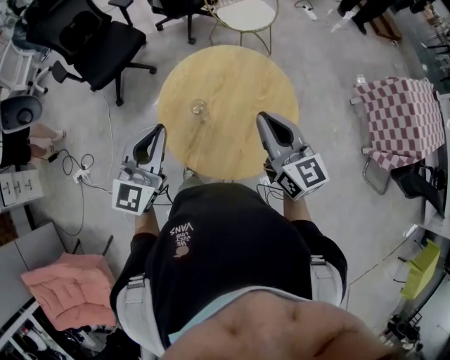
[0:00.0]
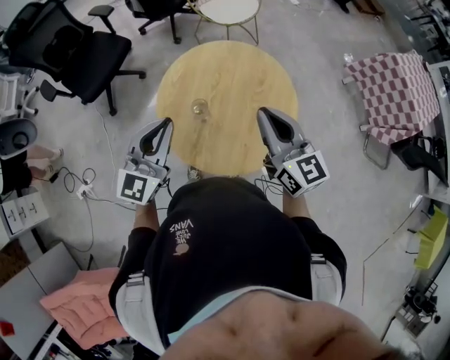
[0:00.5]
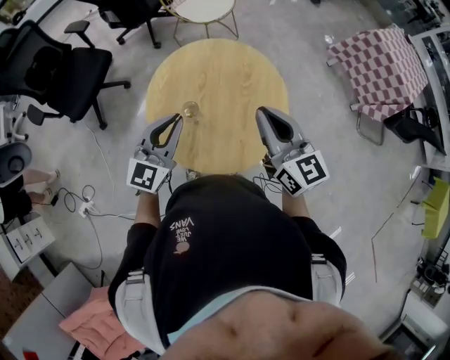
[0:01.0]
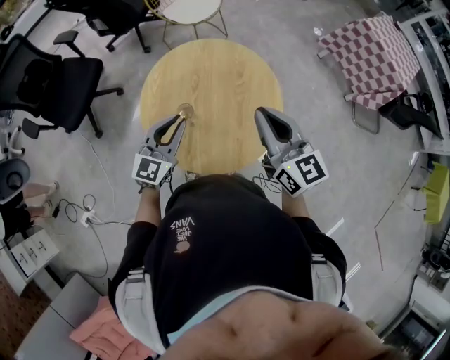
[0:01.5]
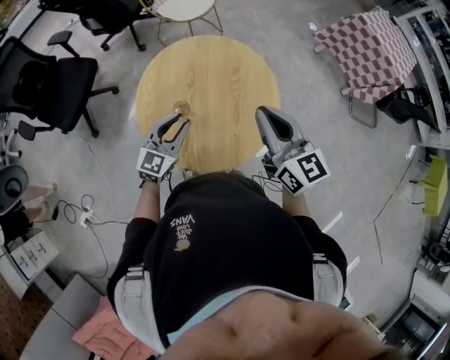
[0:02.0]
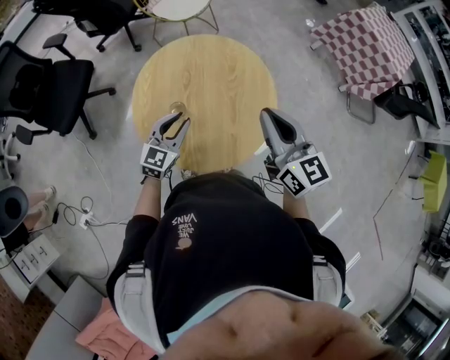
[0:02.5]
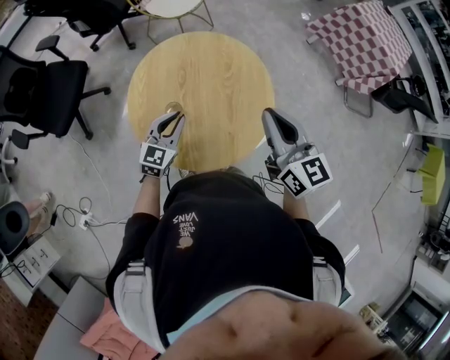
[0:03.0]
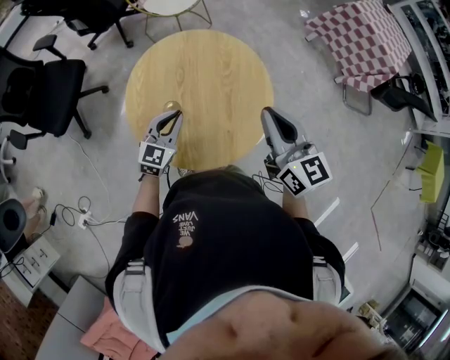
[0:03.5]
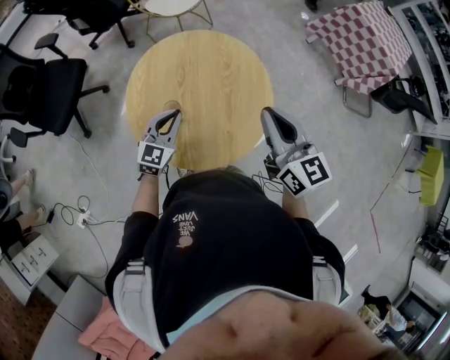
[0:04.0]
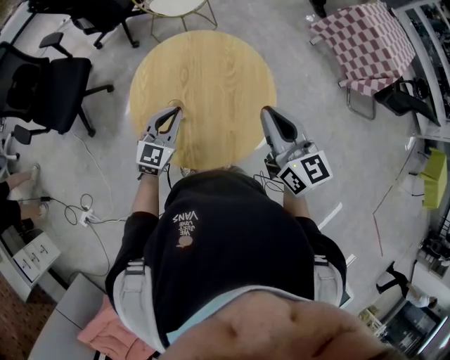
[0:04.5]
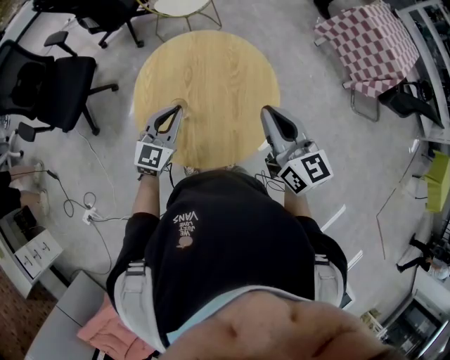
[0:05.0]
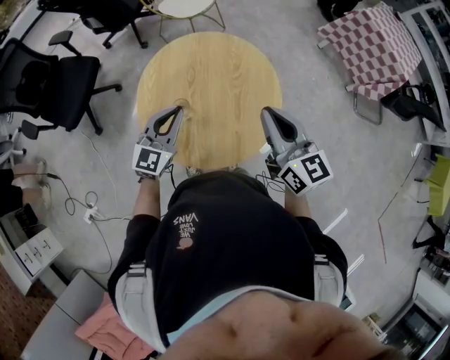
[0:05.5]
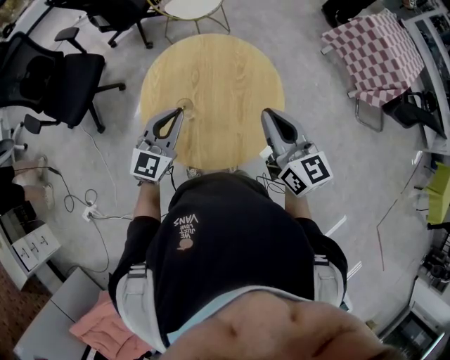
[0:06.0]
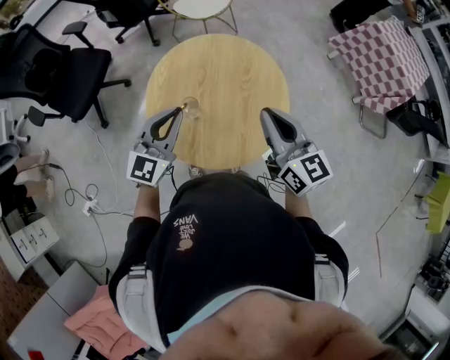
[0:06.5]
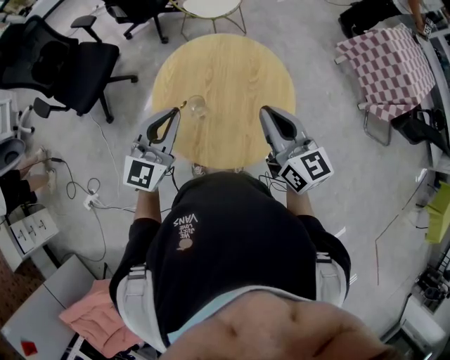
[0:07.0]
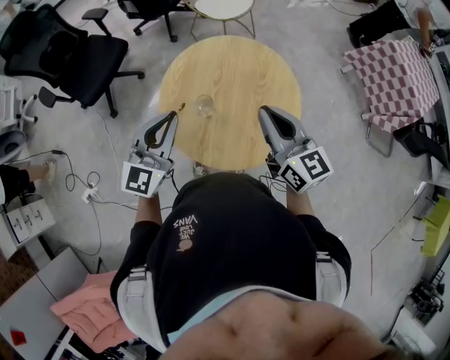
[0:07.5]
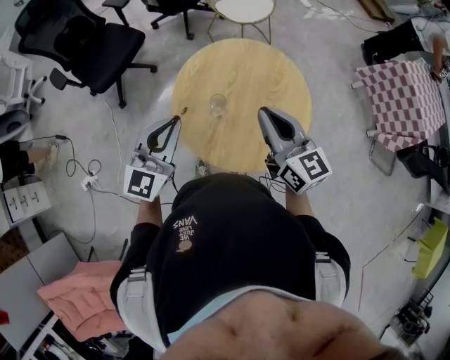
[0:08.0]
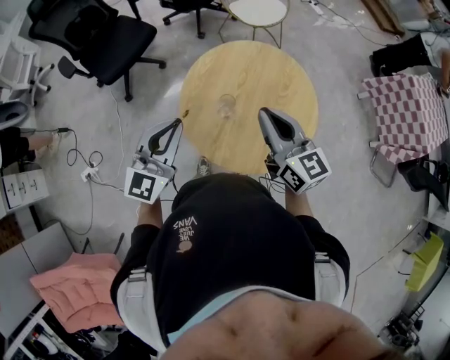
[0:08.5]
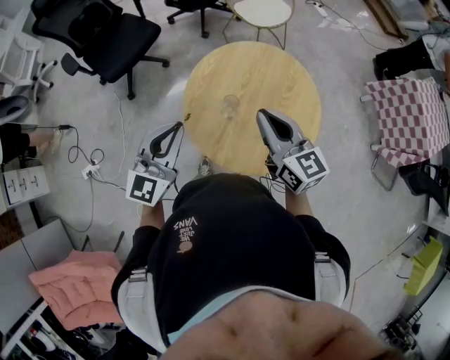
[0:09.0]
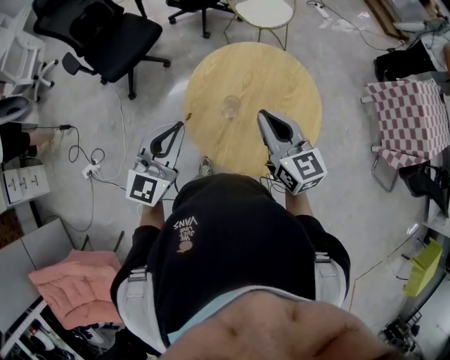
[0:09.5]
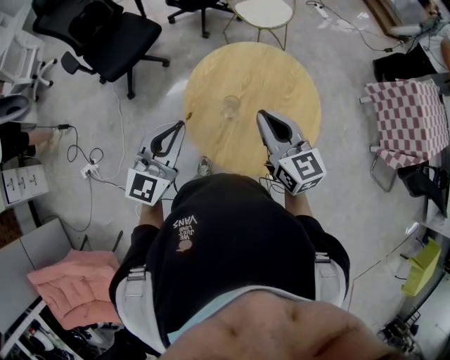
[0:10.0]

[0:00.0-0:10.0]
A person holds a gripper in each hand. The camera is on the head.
0:00.0 to 0:02.0: The left gripper goes about 15 cm downward, changes its angle by roughly 30 degrees, and opens, while the right gripper changes its angle by approximately 20 degrees.
0:02.0 to 0:04.0: The left gripper closes up.
0:04.0 to 0:06.0: The left gripper shifts roughly 10 cm upward.
0:06.0 to 0:08.0: The right gripper moves to the left, some 10 cm; the left gripper shifts some 15 cm to the left, backward and upward.
0:08.0 to 0:10.0: The right gripper changes place by about 5 cm.

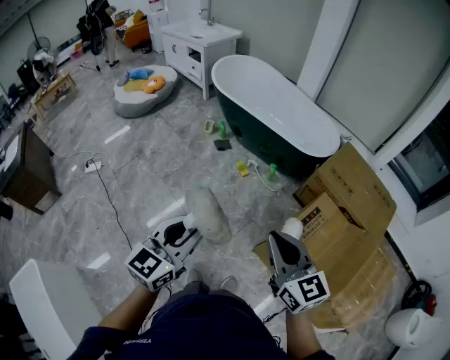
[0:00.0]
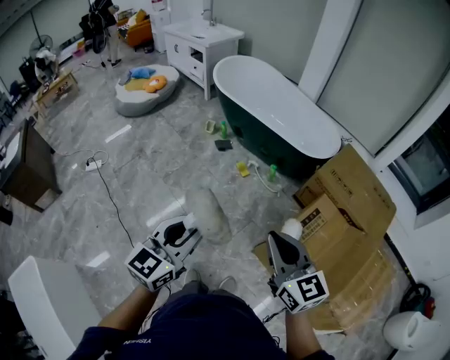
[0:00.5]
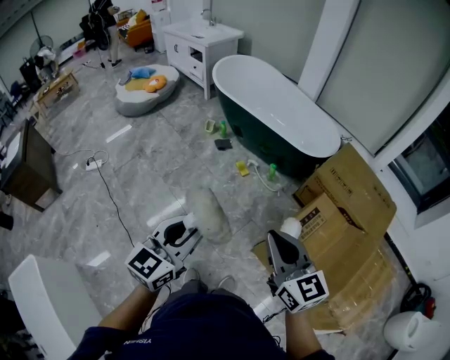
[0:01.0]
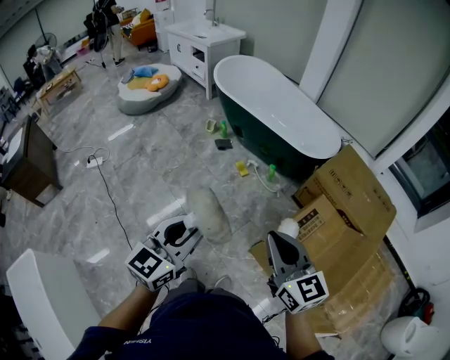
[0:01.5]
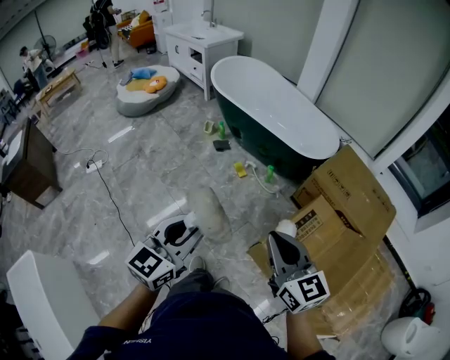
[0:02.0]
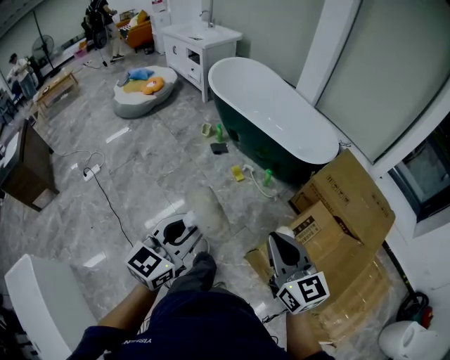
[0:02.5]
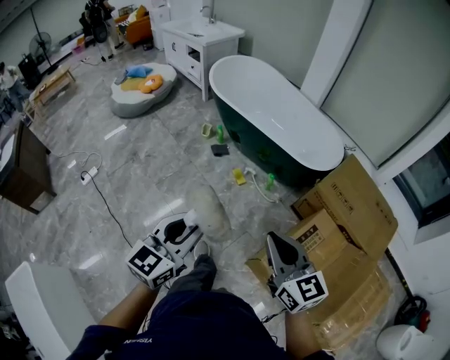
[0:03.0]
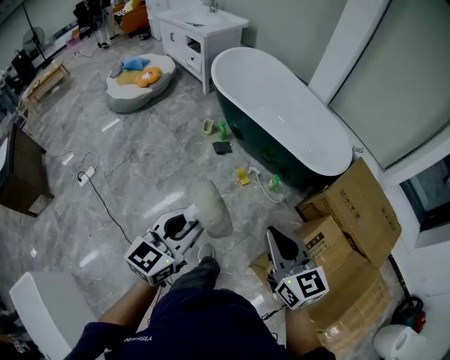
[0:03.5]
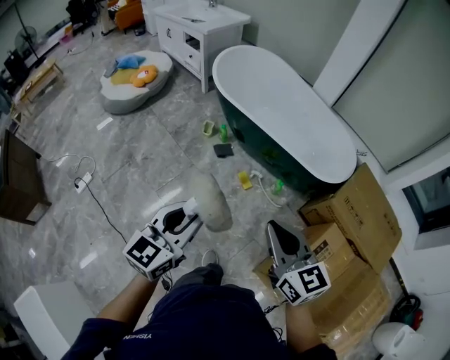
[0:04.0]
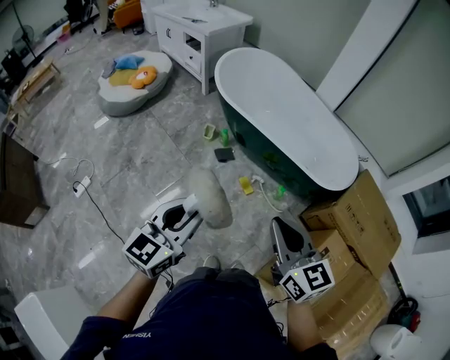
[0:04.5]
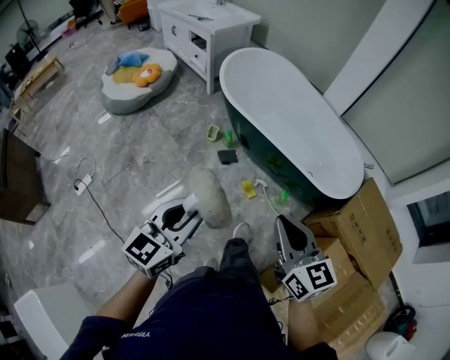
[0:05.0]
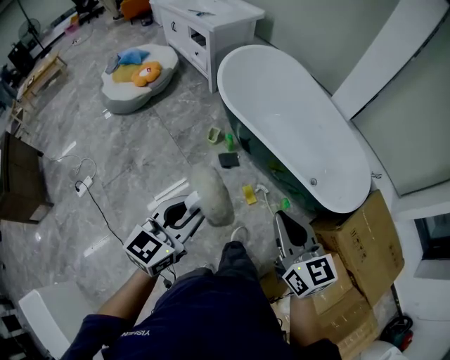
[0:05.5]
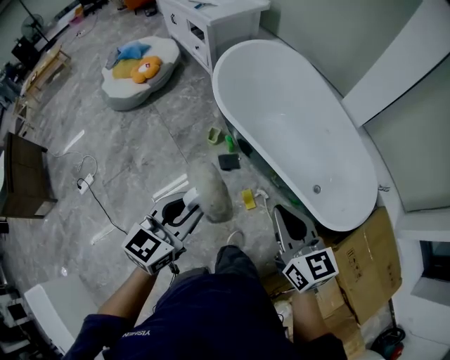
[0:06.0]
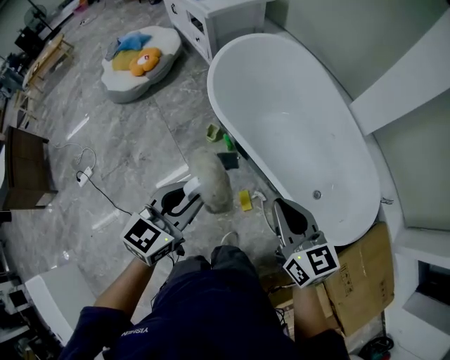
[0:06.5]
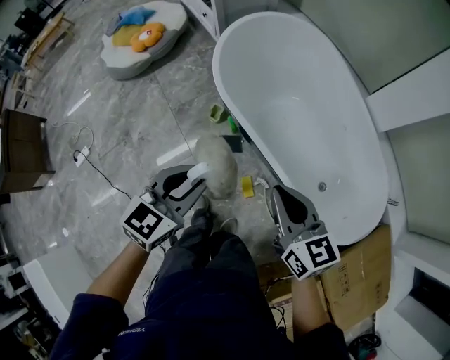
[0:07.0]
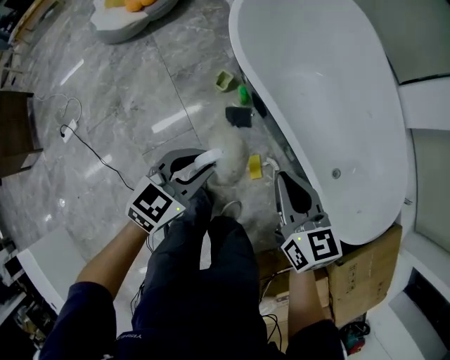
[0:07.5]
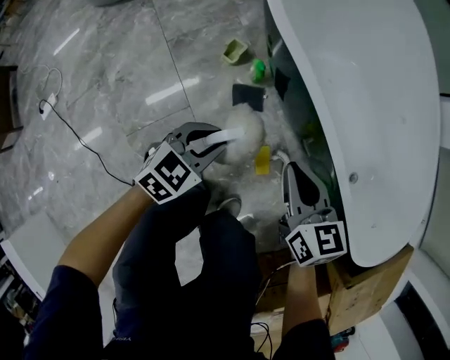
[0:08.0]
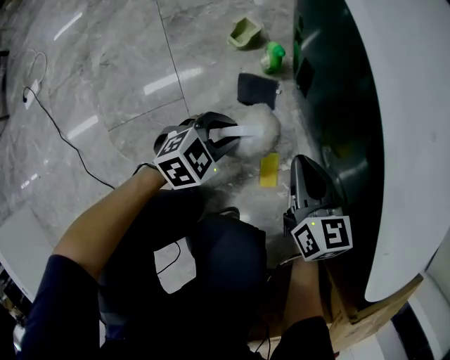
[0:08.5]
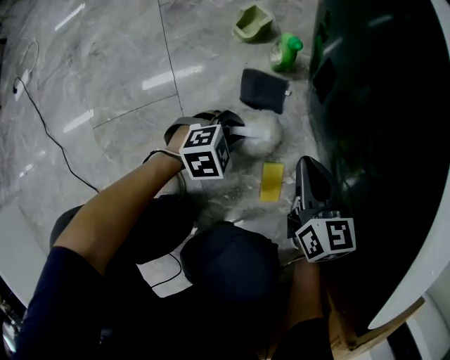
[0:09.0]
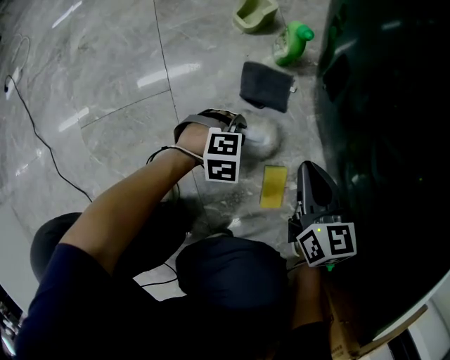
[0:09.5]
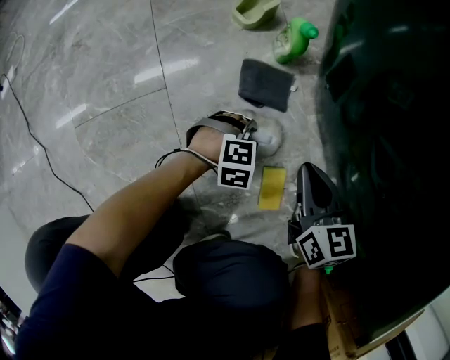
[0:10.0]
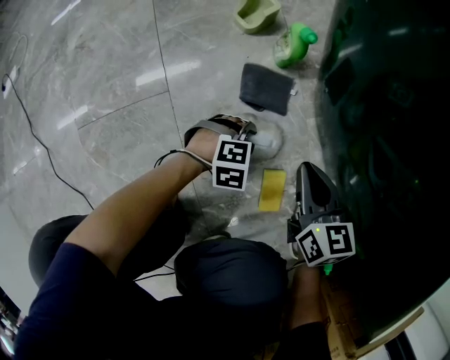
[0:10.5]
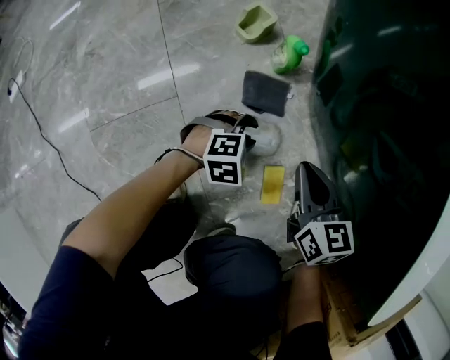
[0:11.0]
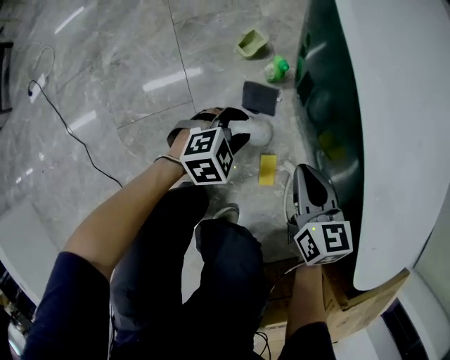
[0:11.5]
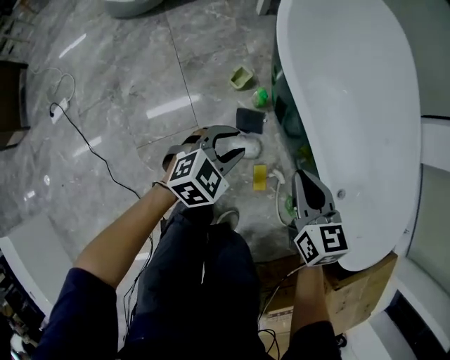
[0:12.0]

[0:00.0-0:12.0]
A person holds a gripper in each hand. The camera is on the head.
0:00.0 to 0:02.0: Both grippers move to the right, about 5 cm.
0:02.0 to 0:04.0: The left gripper goes some 30 cm forward. The right gripper moves forward and to the left, some 35 cm.
0:04.0 to 0:06.0: The grippers both shift forward by about 35 cm.
0:06.0 to 0:08.0: The right gripper travels downward and forward by some 40 cm. The left gripper is displaced downward by approximately 50 cm, and swivels some 30 degrees.
0:08.0 to 0:10.0: Both grippers travel together downward, about 40 cm. The left gripper turns by some 40 degrees.
0:10.0 to 0:12.0: The two grippers go about 50 cm upward. The left gripper rotates about 30 degrees.

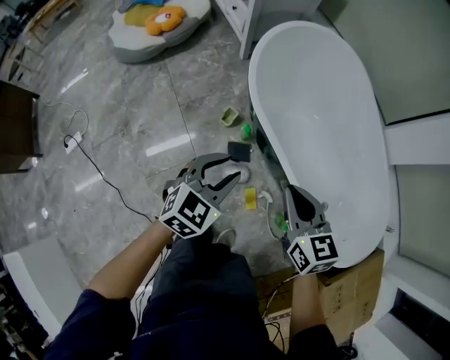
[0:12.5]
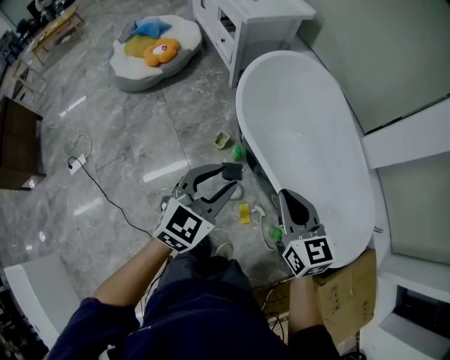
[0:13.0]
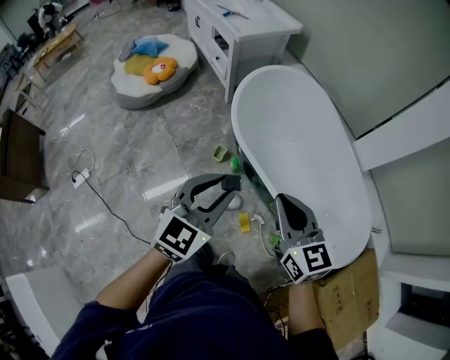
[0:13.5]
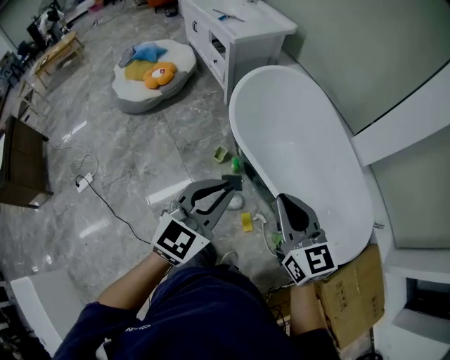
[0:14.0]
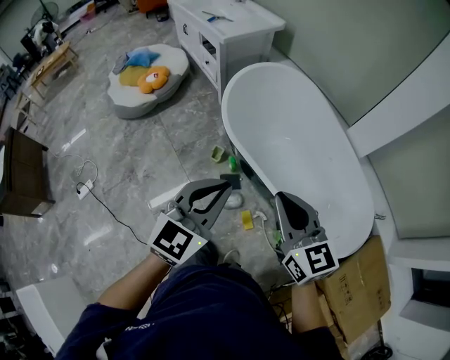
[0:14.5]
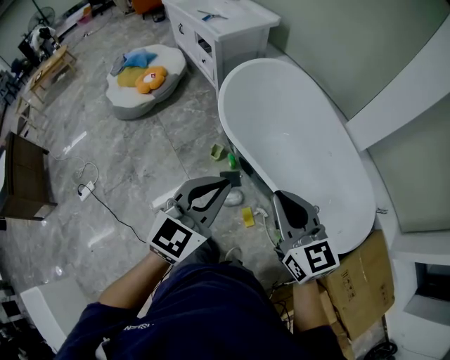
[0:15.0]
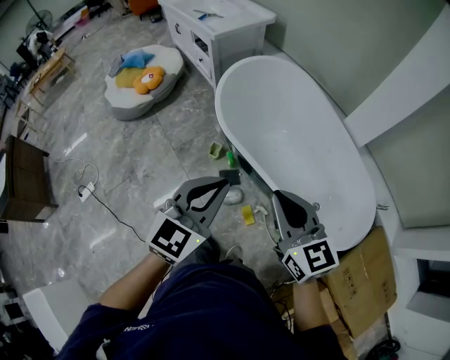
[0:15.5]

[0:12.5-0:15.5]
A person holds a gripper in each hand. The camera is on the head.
0:12.5 to 0:14.0: Both grippers move upward, roughly 20 cm. The left gripper closes.
0:14.0 to 0:15.5: The left gripper changes place by about 5 cm; the right gripper moves roughly 5 cm.

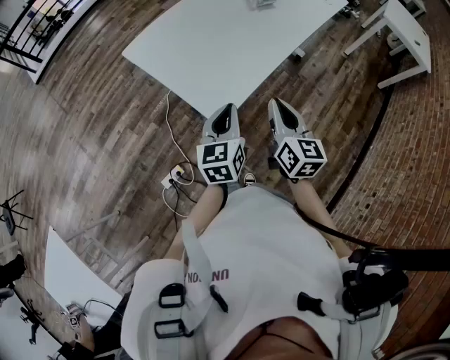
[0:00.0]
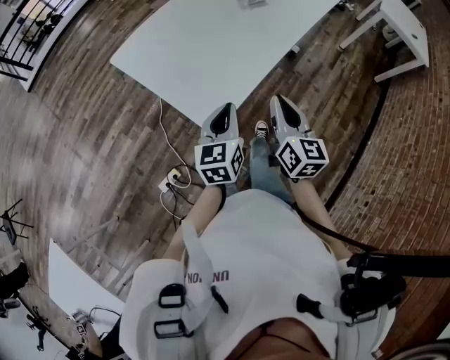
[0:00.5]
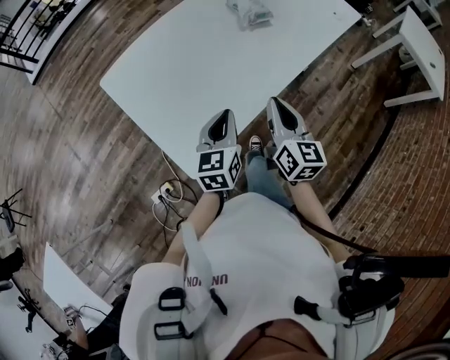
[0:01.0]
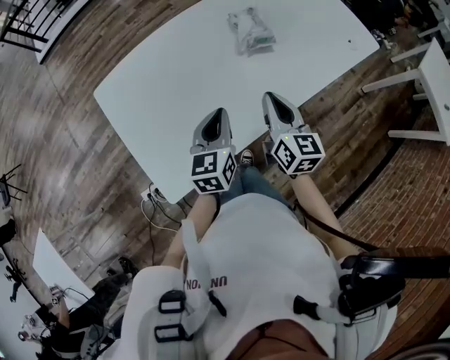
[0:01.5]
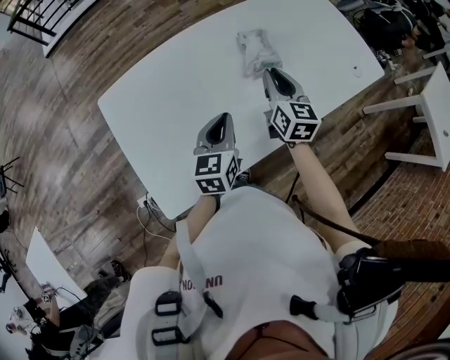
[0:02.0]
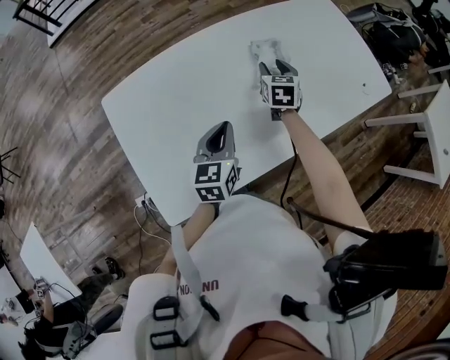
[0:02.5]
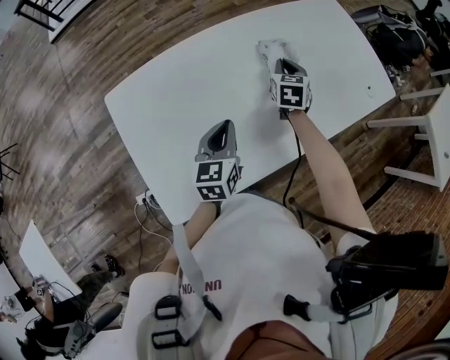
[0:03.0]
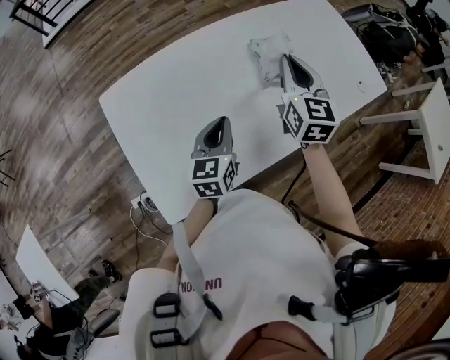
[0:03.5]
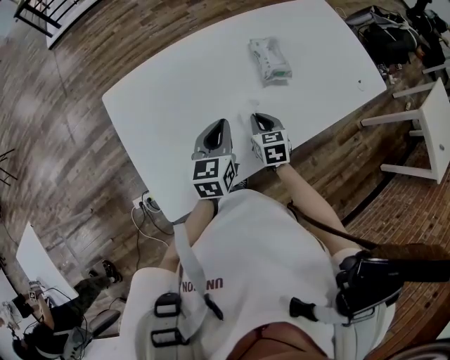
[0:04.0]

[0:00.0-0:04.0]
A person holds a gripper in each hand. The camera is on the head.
0:00.0 to 0:02.0: Both grippers move forward, roughly 40 cm.
0:02.0 to 0:04.0: The right gripper moves up and down over about 20 cm, changing direction 2 times, turns by roughly 30 degrees, and opens, then closes once more.
